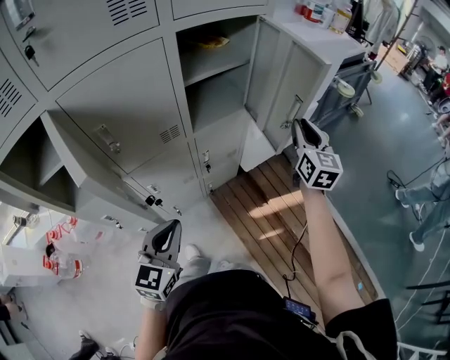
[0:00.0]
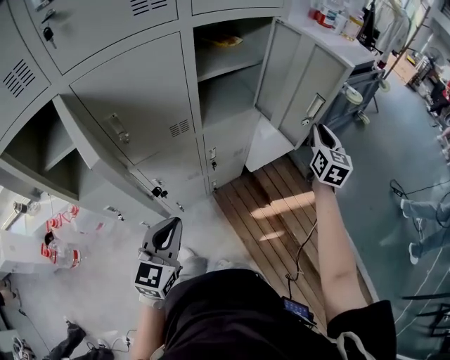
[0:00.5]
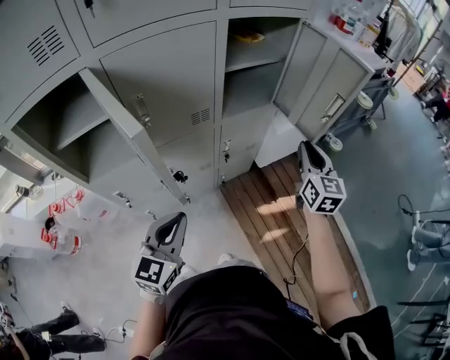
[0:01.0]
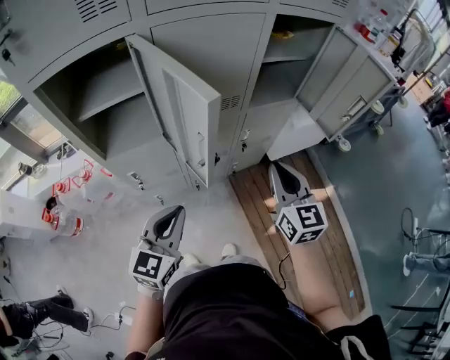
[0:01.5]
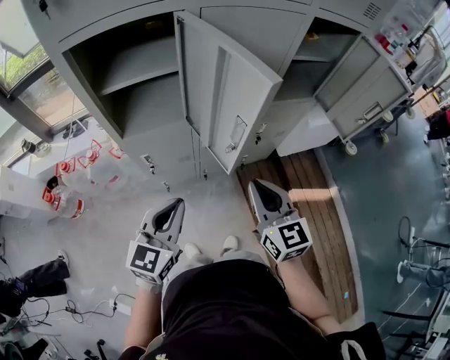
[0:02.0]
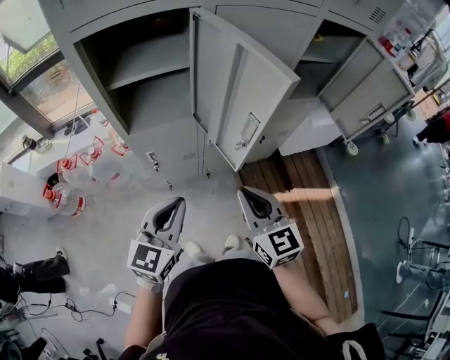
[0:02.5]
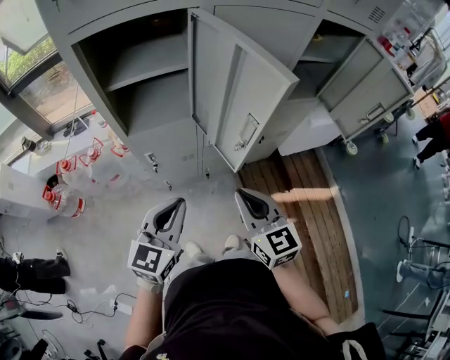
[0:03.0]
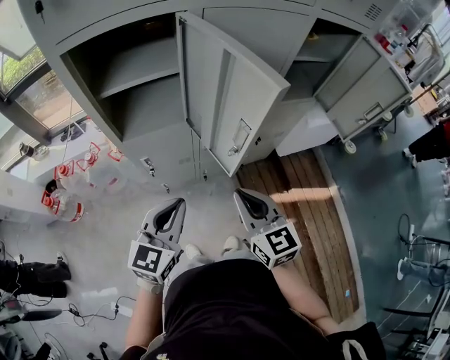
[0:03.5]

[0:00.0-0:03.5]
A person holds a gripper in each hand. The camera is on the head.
0:00.0 to 0:02.0: The left gripper goes about 20 cm to the left and backward. The right gripper moves to the left and backward, approximately 50 cm, and swivels about 30 degrees.
0:02.0 to 0:03.5: The right gripper moves approximately 5 cm.

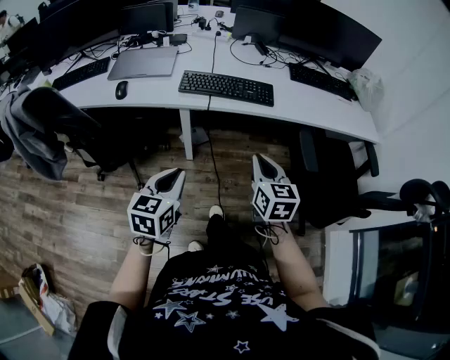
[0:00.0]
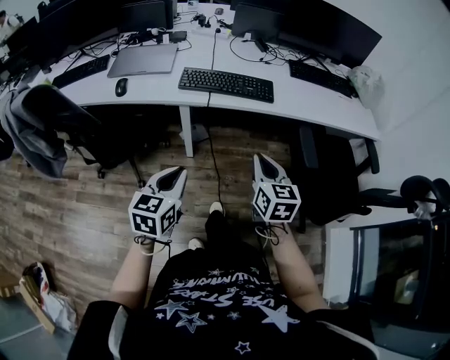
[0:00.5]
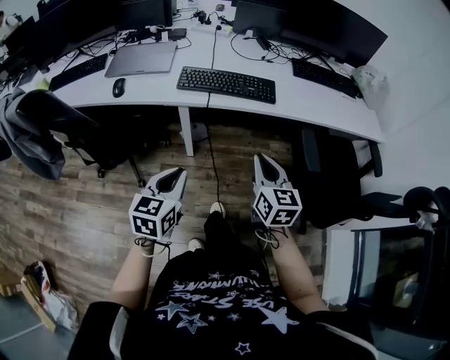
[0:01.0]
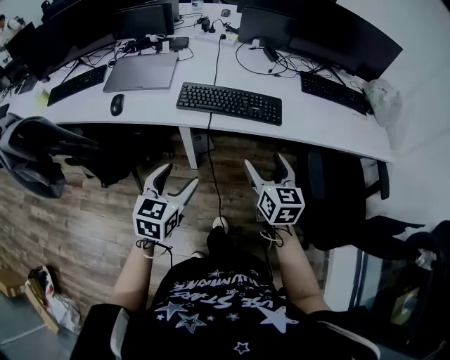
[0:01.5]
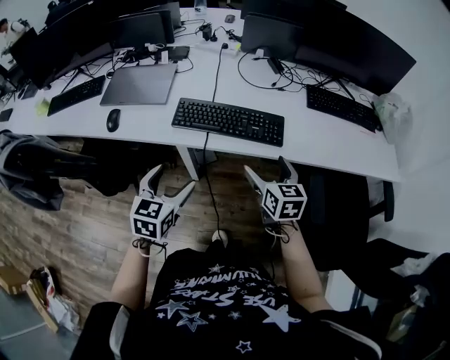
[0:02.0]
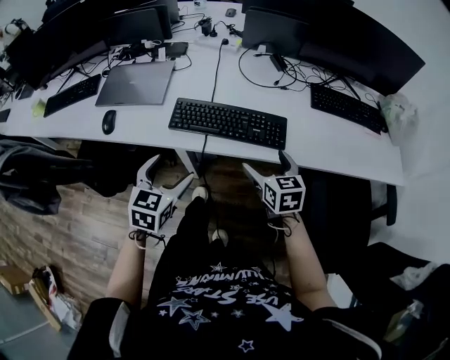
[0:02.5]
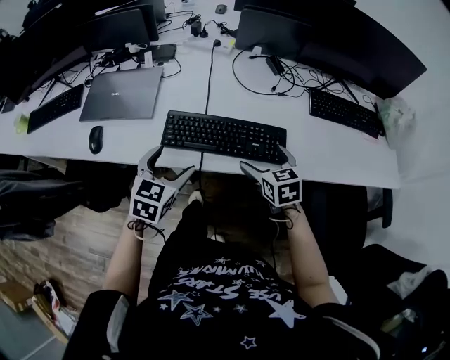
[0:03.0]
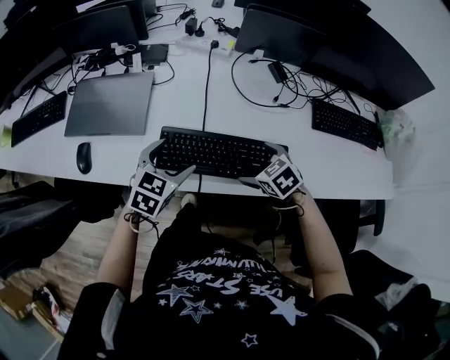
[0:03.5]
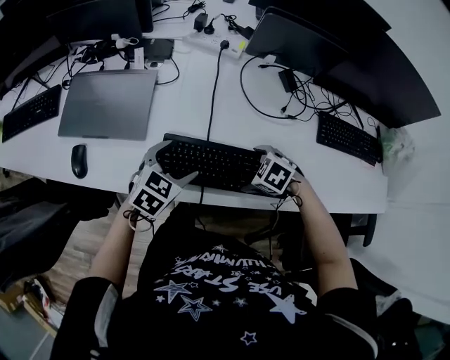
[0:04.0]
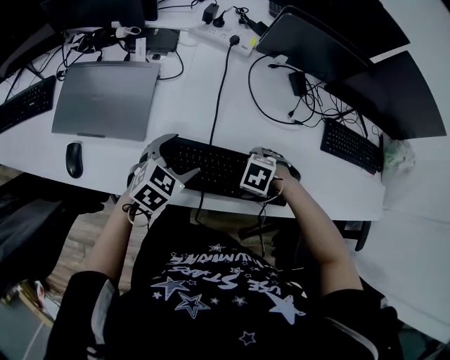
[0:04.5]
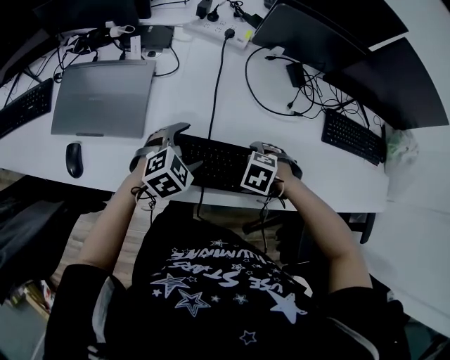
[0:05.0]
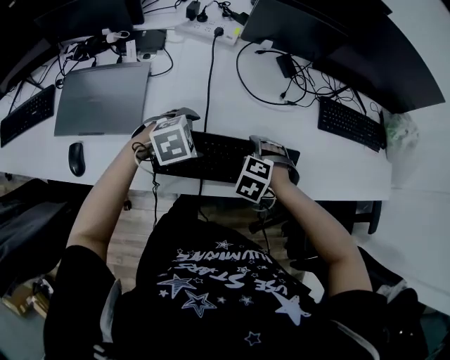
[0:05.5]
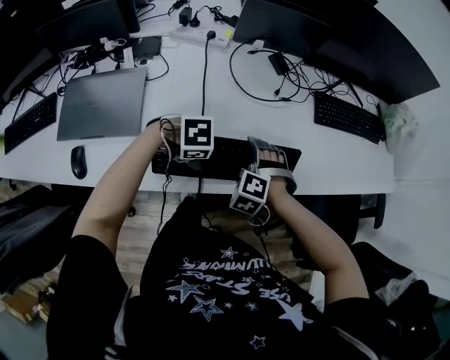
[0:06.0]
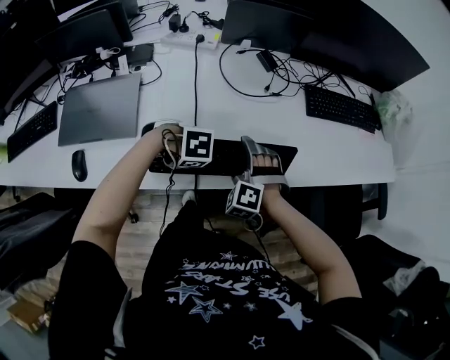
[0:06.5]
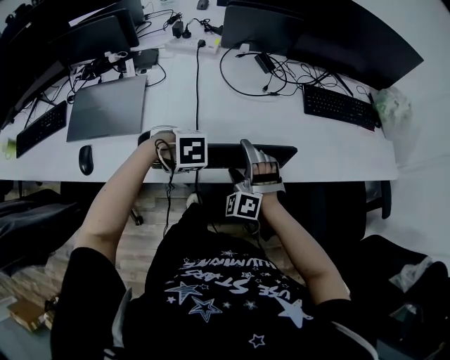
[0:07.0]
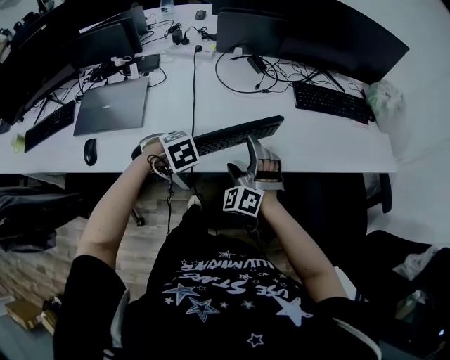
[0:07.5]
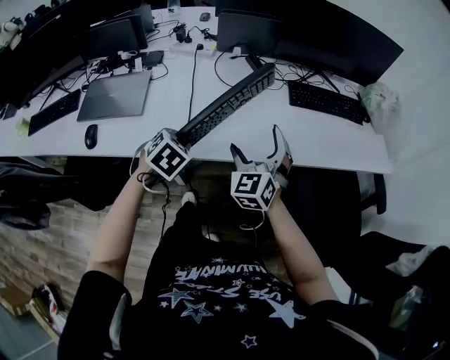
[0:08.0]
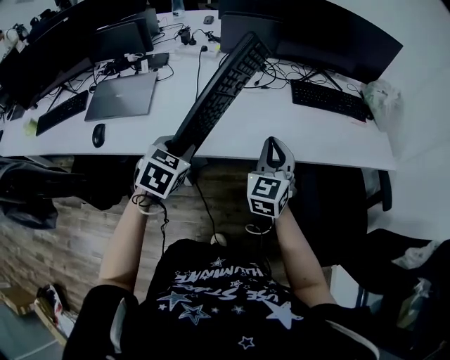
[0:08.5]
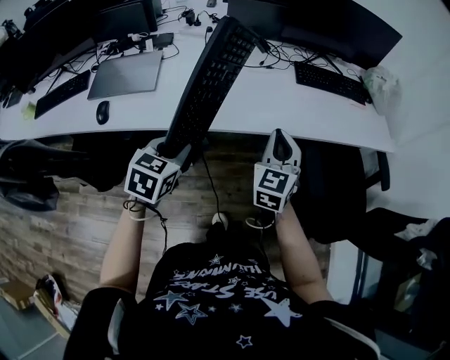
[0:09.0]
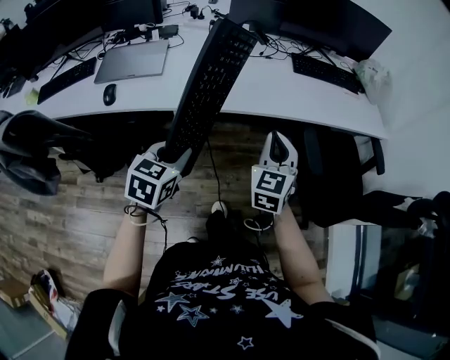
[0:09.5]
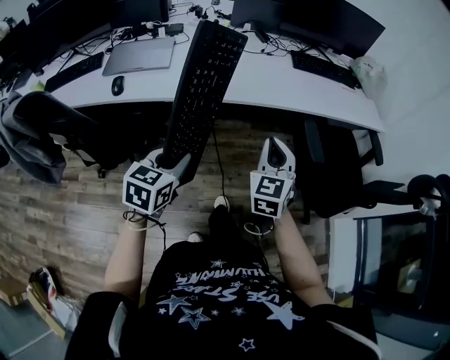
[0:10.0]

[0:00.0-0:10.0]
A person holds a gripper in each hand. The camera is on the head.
0:00.0 to 0:02.0: Both grippers travel together forward, roughly 20 cm. The left gripper opens its fingers. Meanwhile the right gripper opens up.
0:02.0 to 0:04.0: The right gripper ends up some 25 cm from where it was, and tips its fingers downward by some 50 degrees. Meanwhile the left gripper ends up approximately 30 cm from where it was, and rotates some 30 degrees.
0:04.0 to 0:06.0: The left gripper moves roughly 10 cm, and changes its angle by about 60 degrees. Meanwhile the right gripper turns by about 40 degrees.
0:06.0 to 0:08.0: The left gripper changes place by approximately 15 cm, rotates roughly 60 degrees, and closes. The right gripper shifts some 20 cm upward, and tilts its fingers some 50 degrees upward.
0:08.0 to 0:10.0: Both grippers move backward, about 30 cm. The right gripper closes its fingers. The left gripper changes its angle by roughly 40 degrees.

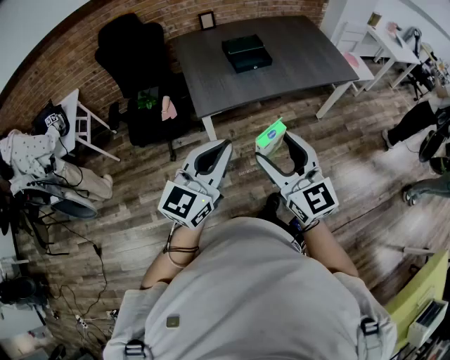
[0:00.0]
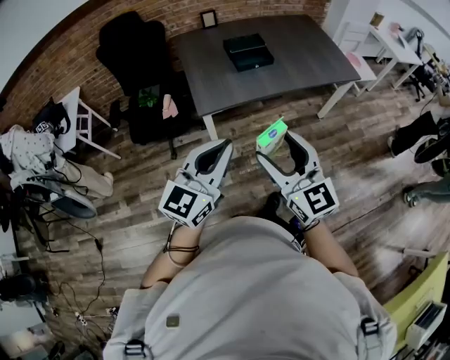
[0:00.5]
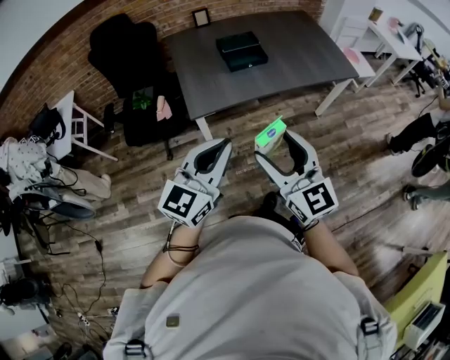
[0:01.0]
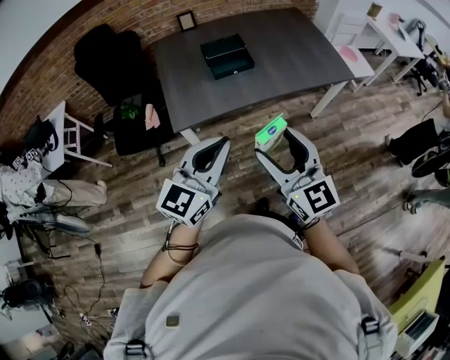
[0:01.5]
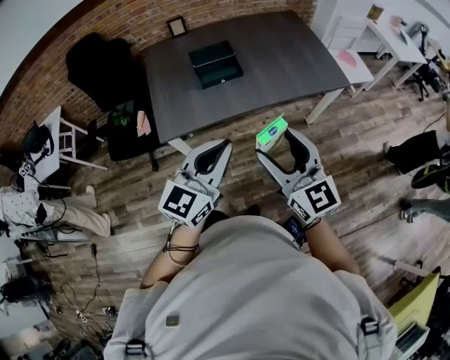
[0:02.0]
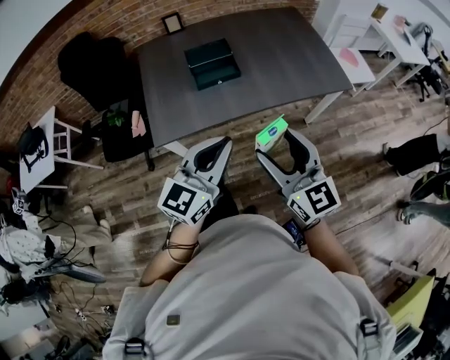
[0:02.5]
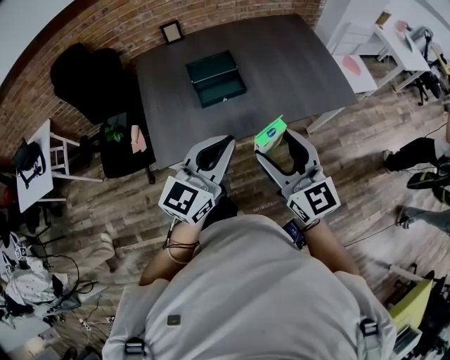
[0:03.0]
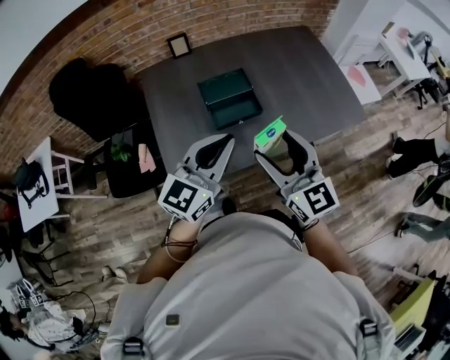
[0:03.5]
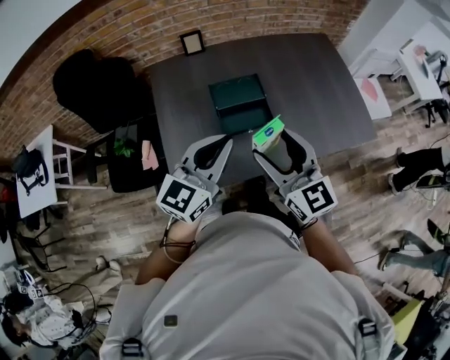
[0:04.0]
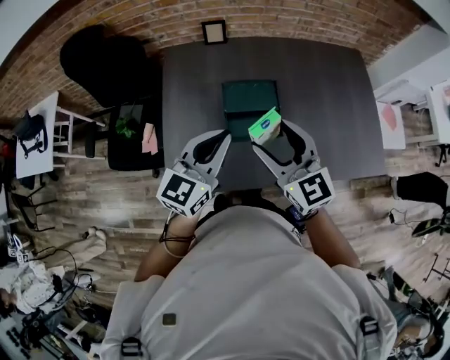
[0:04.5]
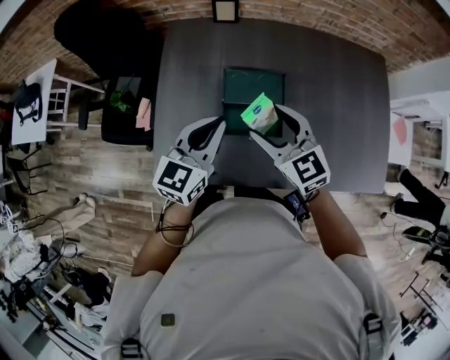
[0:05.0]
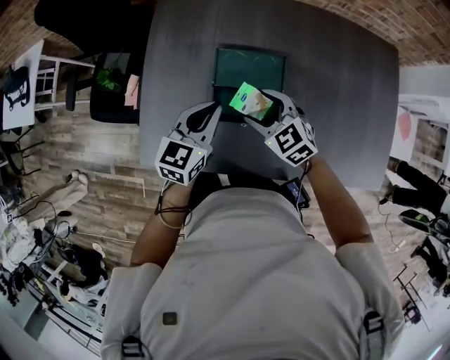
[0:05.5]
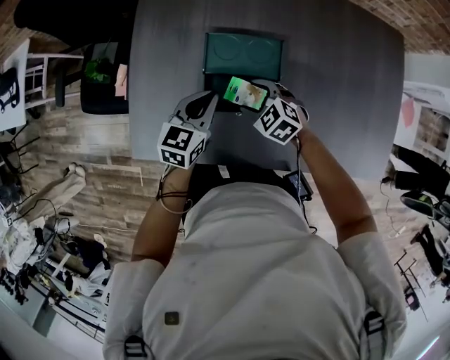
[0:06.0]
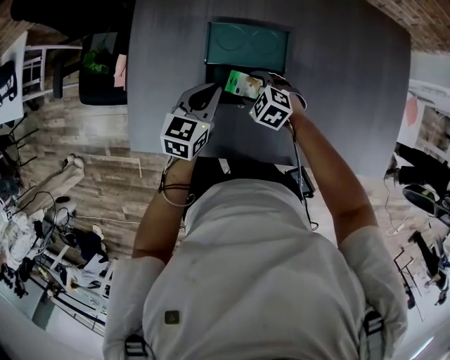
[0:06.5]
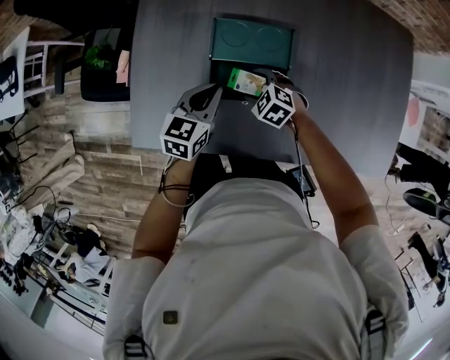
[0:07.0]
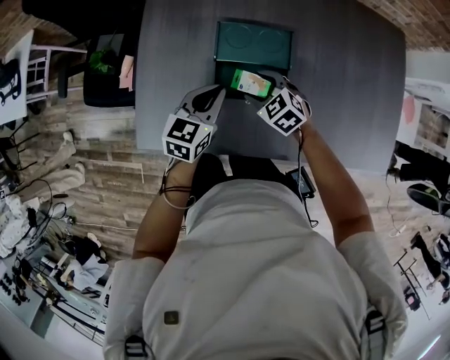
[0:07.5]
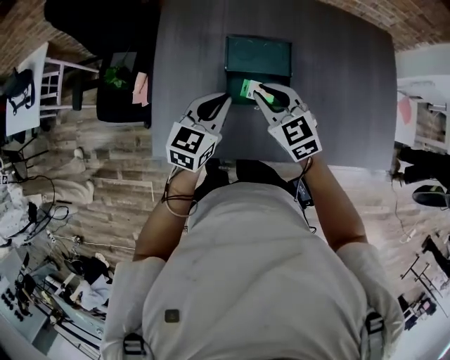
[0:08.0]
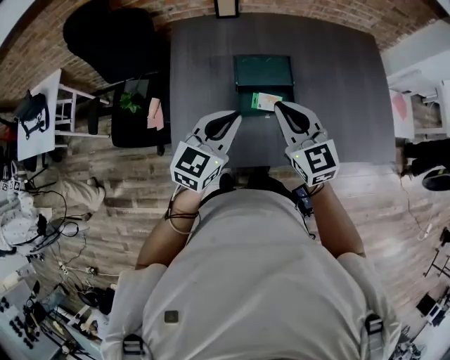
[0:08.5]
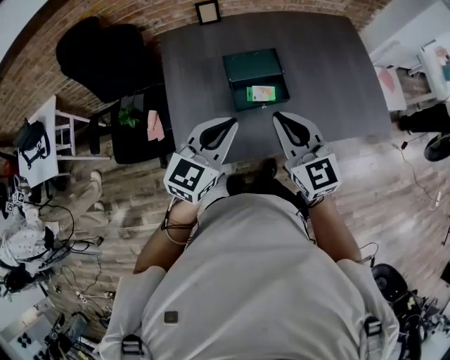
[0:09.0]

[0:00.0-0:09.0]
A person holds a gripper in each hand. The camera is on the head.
0:00.0 to 0:02.0: Both grippers travel together to the right and forward, about 30 cm.
0:02.0 to 0:04.5: The two grippers travel together, forward, roughly 50 cm.
0:04.5 to 0:07.0: Both grippers move downward, some 35 cm. The right gripper tilts its fingers approximately 50 degrees downward, while the left gripper changes its angle by approximately 30 degrees.
0:07.0 to 0:09.0: The right gripper moves upward, about 40 cm, tilts its fingers about 50 degrees upward, and closes up; the left gripper shifts some 25 cm upward, and changes its angle by roughly 40 degrees.

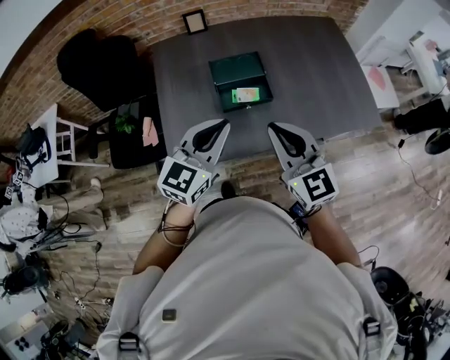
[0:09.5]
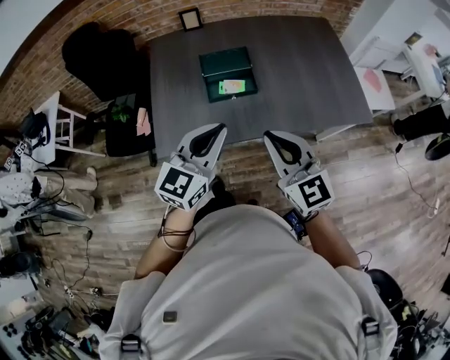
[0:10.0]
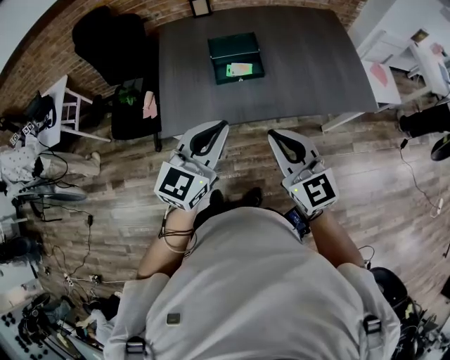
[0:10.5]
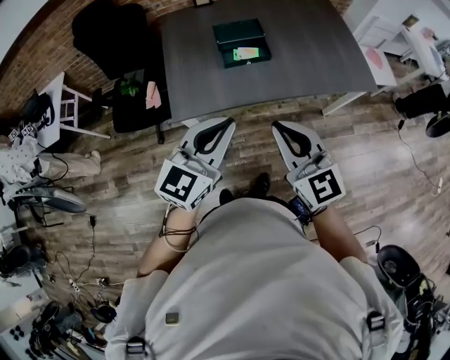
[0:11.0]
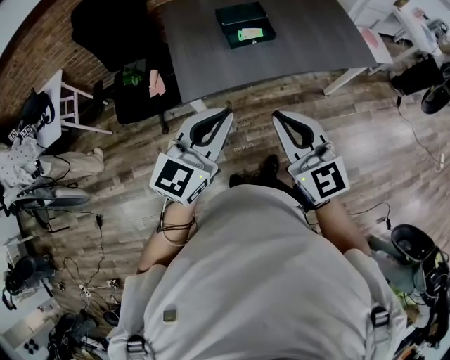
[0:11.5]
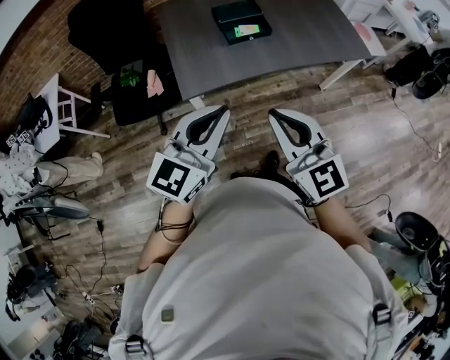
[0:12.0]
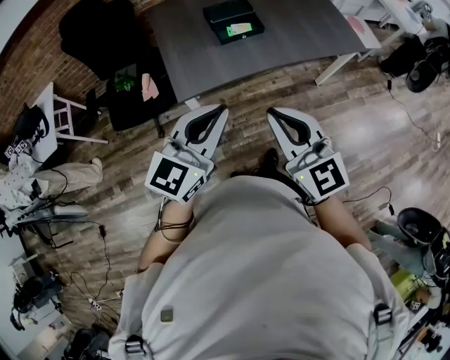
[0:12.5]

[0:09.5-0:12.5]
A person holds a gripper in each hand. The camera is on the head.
0:09.5 to 0:11.0: The grippers both shift backward by approximately 25 cm.
0:11.0 to 0:12.5: Both grippers move backward and to the left, roughly 15 cm.
